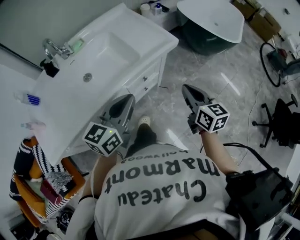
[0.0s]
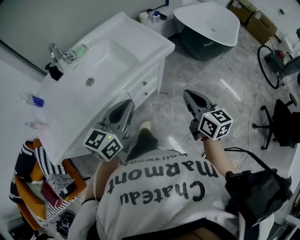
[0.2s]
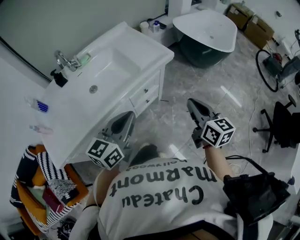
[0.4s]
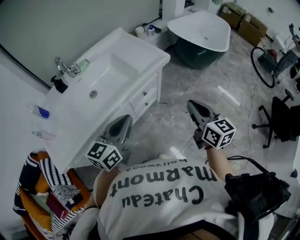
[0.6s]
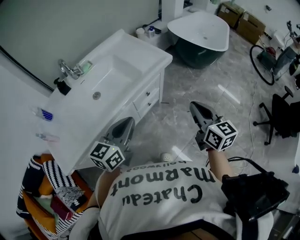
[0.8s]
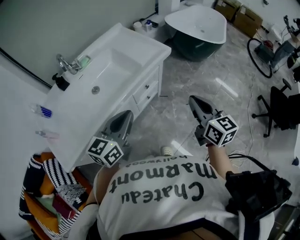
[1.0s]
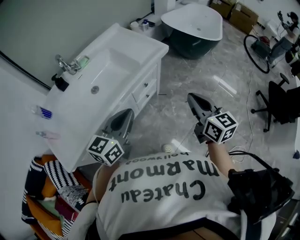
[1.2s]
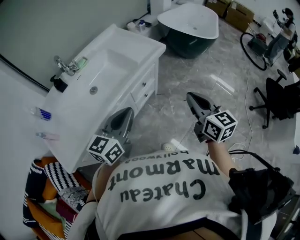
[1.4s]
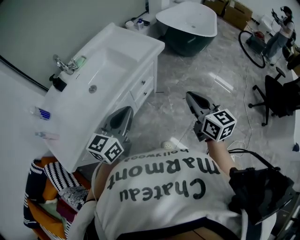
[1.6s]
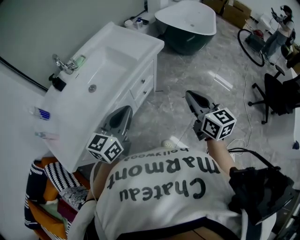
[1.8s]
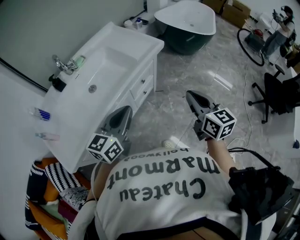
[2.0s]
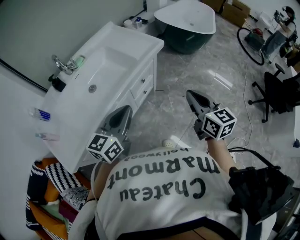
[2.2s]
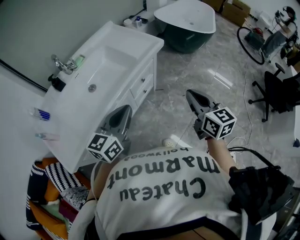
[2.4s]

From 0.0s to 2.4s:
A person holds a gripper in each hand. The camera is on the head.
From 0.0s to 1.2s: The left gripper is displaced backward by some 10 cm. The right gripper moves backward and upward, about 15 cm.
From 1.2s to 2.4s: The grippers make only small movements.

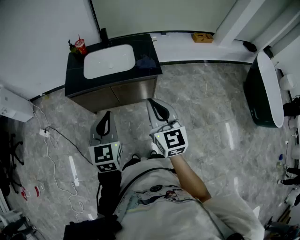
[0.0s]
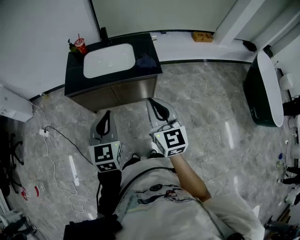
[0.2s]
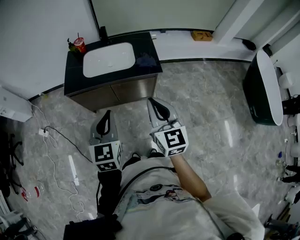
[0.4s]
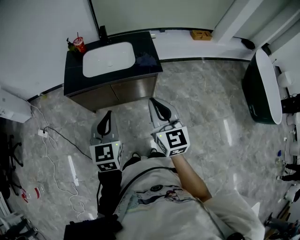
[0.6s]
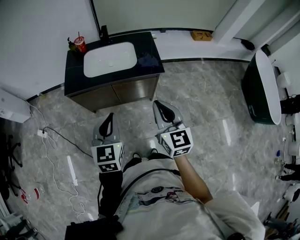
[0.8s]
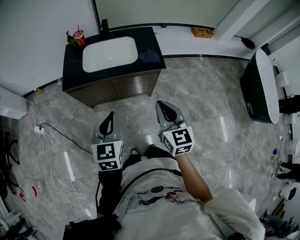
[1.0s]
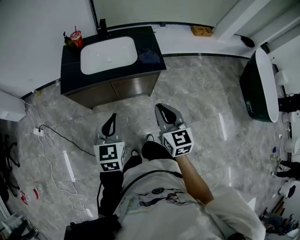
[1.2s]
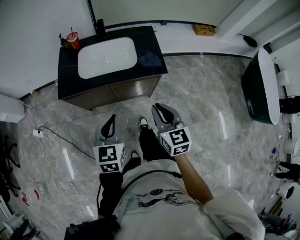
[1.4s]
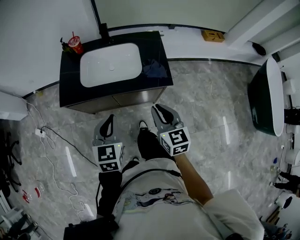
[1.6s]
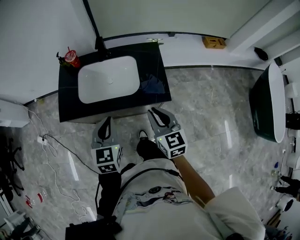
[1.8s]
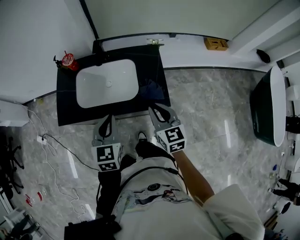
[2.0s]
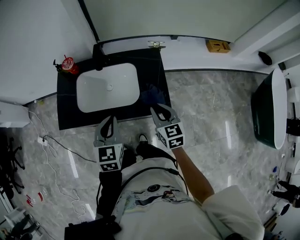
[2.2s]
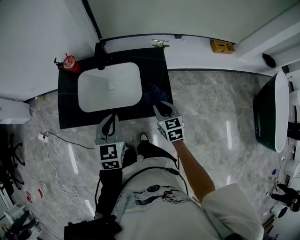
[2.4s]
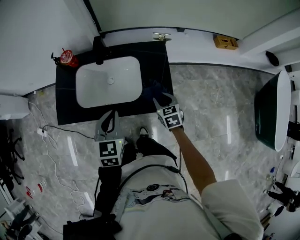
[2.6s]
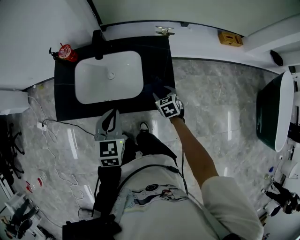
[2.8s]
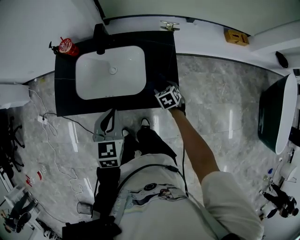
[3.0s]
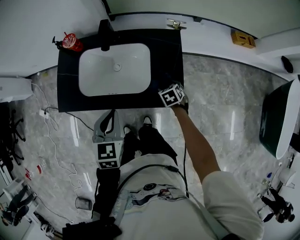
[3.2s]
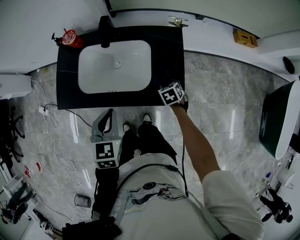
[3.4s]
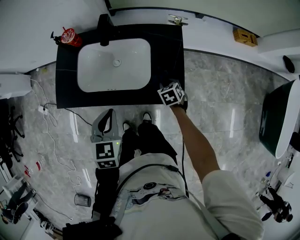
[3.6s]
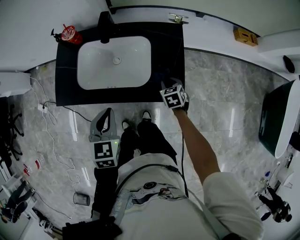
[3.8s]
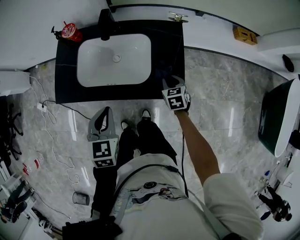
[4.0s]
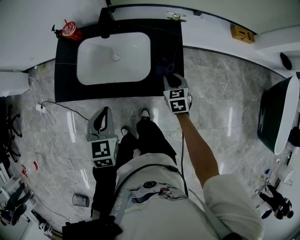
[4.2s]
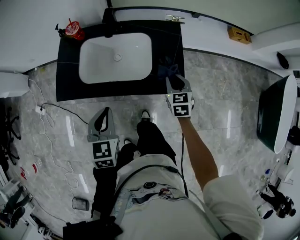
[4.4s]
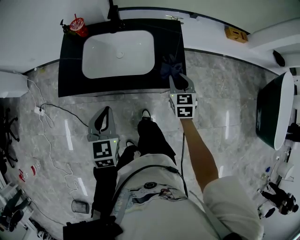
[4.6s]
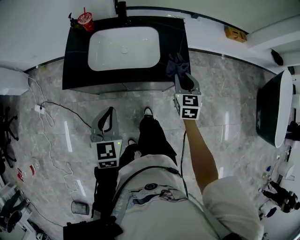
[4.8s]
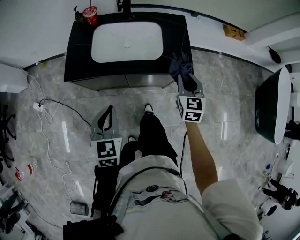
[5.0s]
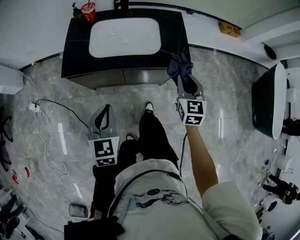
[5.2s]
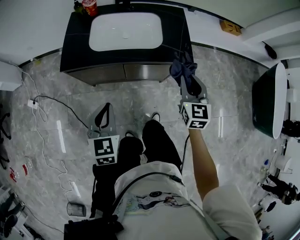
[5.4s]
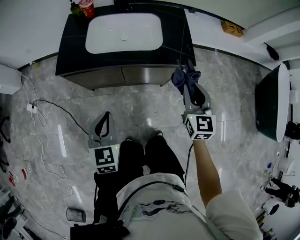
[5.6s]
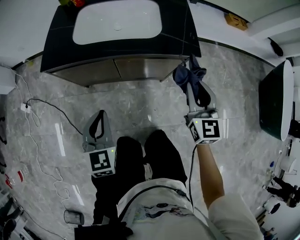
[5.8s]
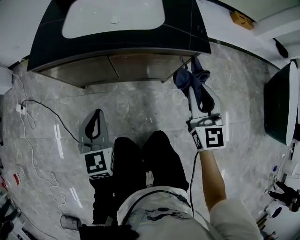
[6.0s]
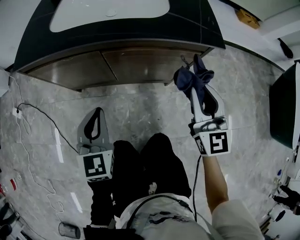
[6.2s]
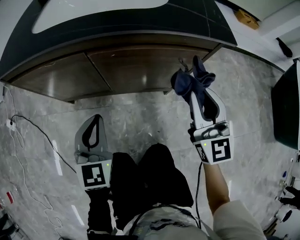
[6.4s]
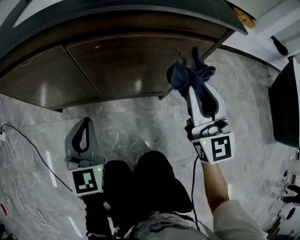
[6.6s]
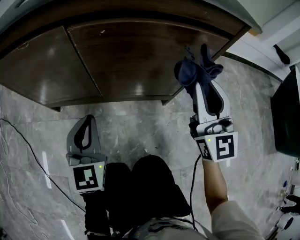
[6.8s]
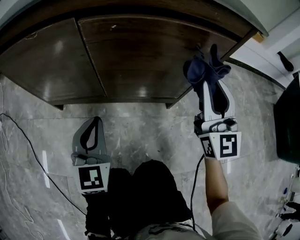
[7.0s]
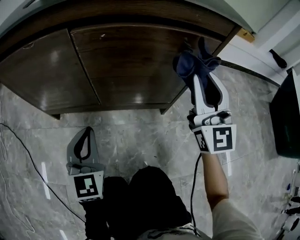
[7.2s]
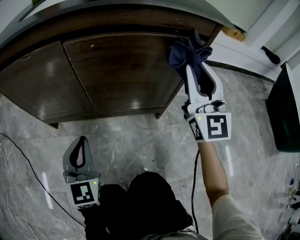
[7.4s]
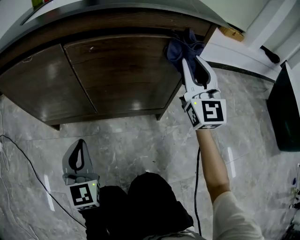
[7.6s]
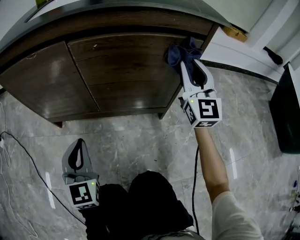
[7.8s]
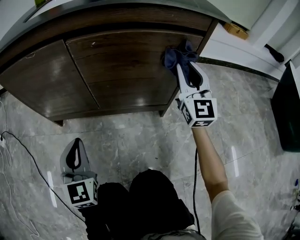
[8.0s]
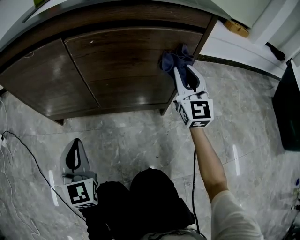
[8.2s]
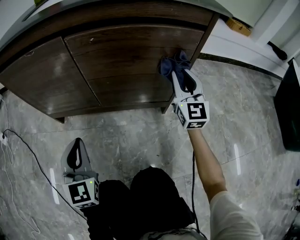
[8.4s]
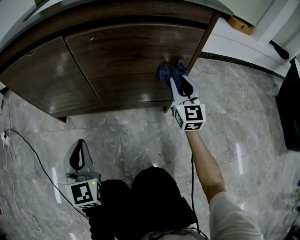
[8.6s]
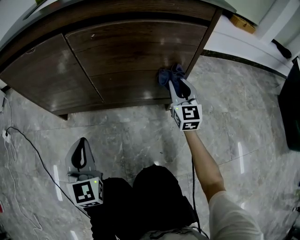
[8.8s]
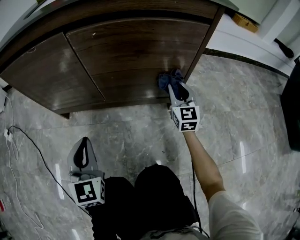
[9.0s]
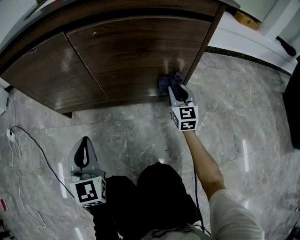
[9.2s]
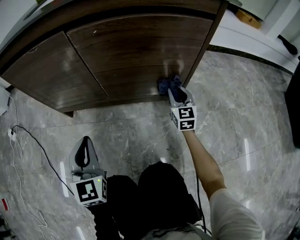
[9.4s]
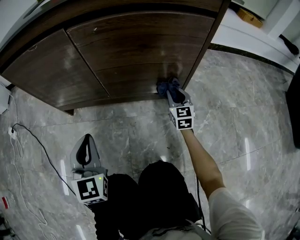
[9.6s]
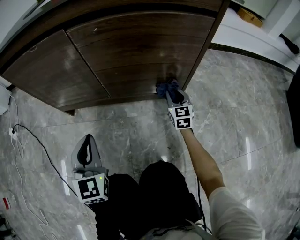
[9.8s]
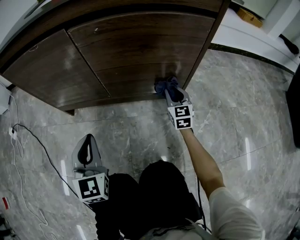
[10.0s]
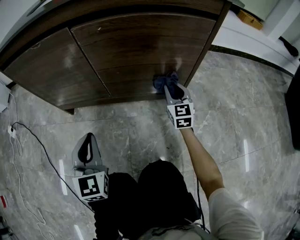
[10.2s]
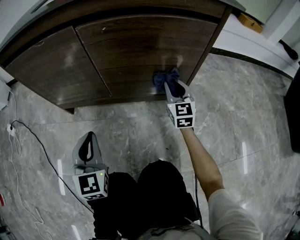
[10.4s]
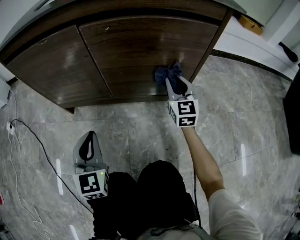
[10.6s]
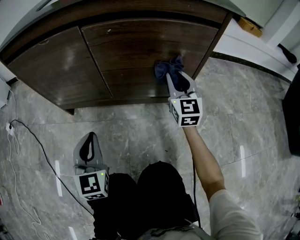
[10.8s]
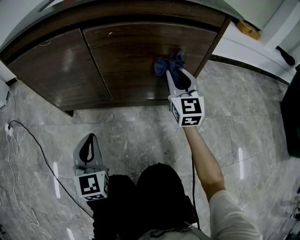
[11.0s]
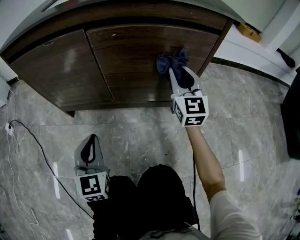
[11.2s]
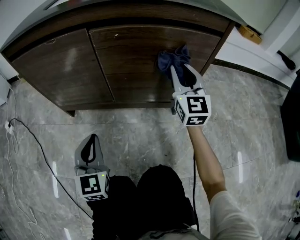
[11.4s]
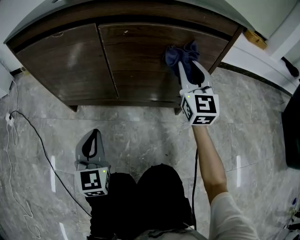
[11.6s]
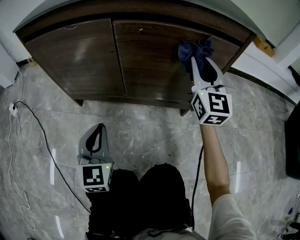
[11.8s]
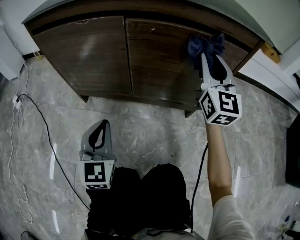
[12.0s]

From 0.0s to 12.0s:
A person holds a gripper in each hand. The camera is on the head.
From 0.0s to 1.6s: The grippers both shift forward and downward by about 20 cm.
From 1.6s to 3.0s: The left gripper heads forward, covering about 15 cm. Meanwhile the right gripper goes approximately 35 cm downward and forward, angles its fingers downward, by some 40 degrees, and opens.
From 3.0s to 4.4s: The right gripper shifts roughly 10 cm upward, swivels some 30 degrees, and closes, while the left gripper heads to the left and backward, covering approximately 10 cm.
From 4.4s to 6.0s: The left gripper shifts some 25 cm downward and backward; the right gripper goes approximately 20 cm backward, and rotates roughly 30 degrees.
From 6.0s to 7.6s: The right gripper heads downward and forward, covering about 20 cm, and swivels approximately 30 degrees. The left gripper moves downward, roughly 25 cm.
From 7.6s to 9.0s: The right gripper is displaced downward by approximately 25 cm, and changes its angle by some 20 degrees.
From 9.0s to 10.4s: The right gripper moves about 10 cm downward and comes back.
From 10.4s to 12.0s: The right gripper shifts roughly 25 cm upward.

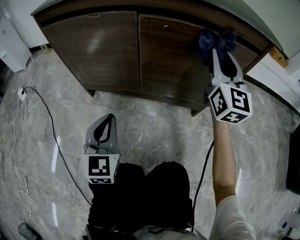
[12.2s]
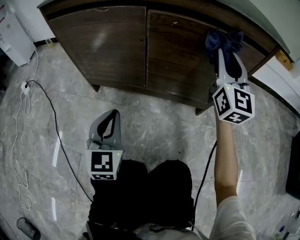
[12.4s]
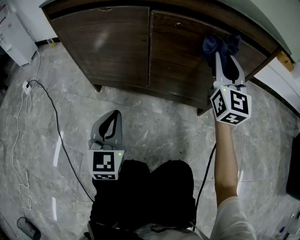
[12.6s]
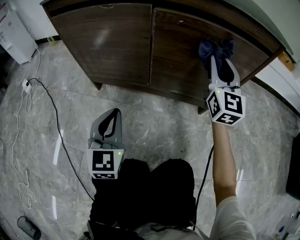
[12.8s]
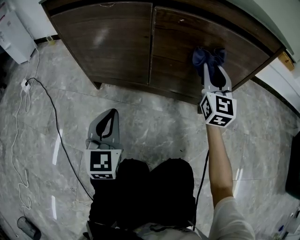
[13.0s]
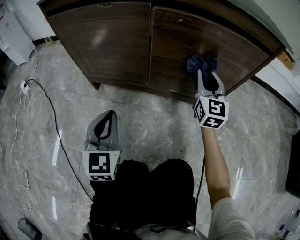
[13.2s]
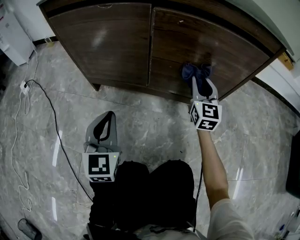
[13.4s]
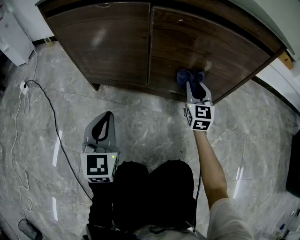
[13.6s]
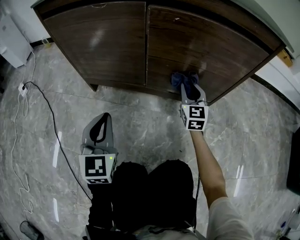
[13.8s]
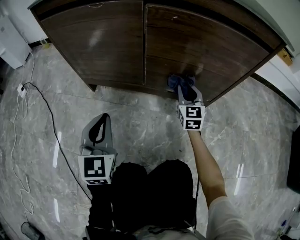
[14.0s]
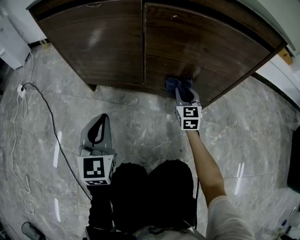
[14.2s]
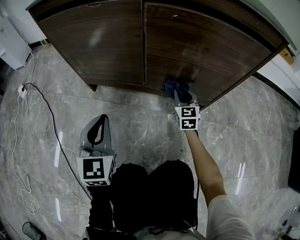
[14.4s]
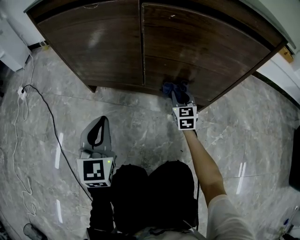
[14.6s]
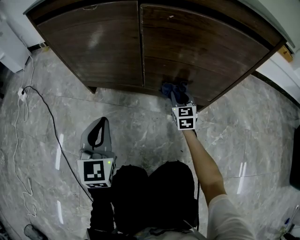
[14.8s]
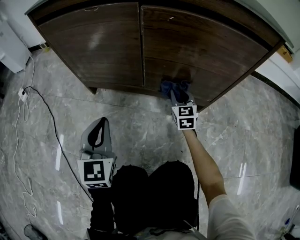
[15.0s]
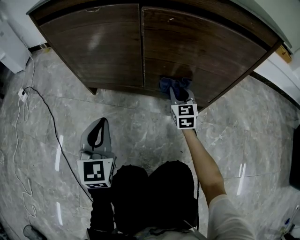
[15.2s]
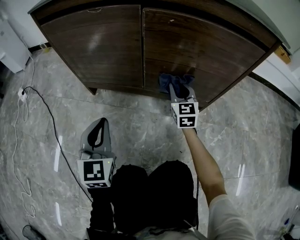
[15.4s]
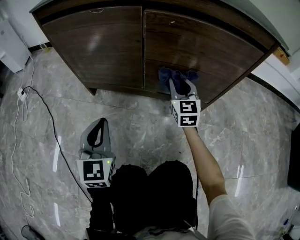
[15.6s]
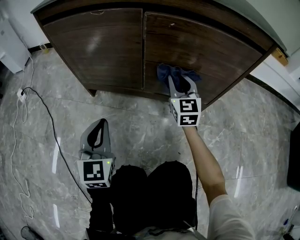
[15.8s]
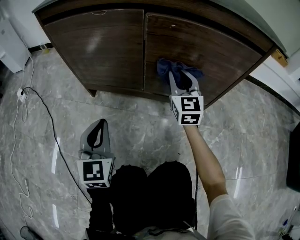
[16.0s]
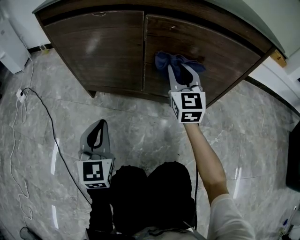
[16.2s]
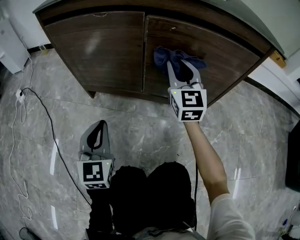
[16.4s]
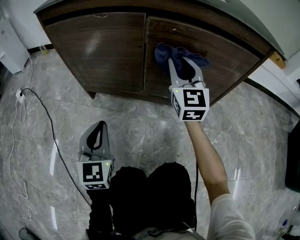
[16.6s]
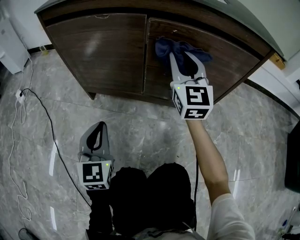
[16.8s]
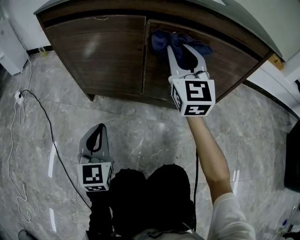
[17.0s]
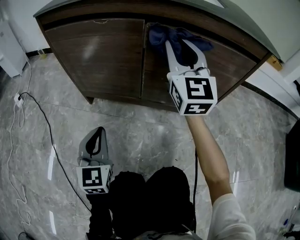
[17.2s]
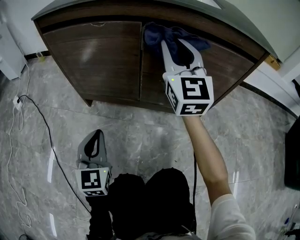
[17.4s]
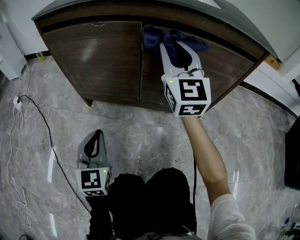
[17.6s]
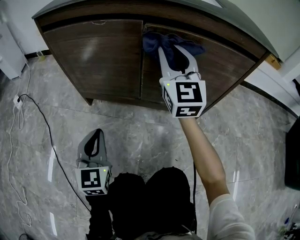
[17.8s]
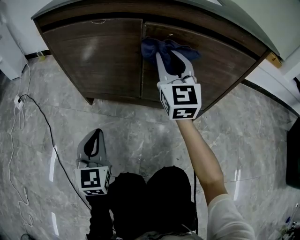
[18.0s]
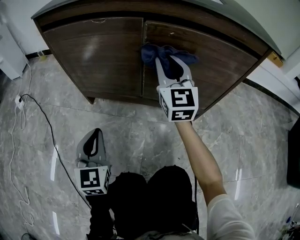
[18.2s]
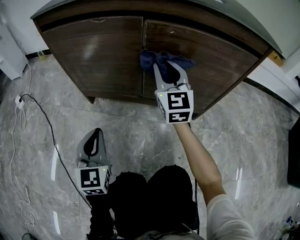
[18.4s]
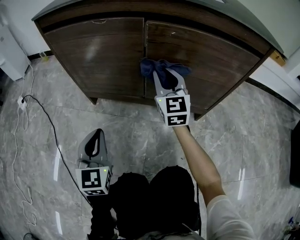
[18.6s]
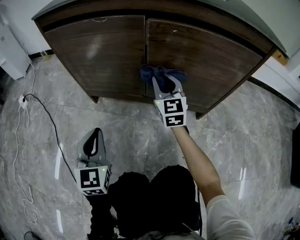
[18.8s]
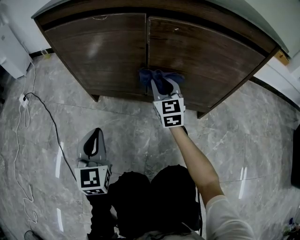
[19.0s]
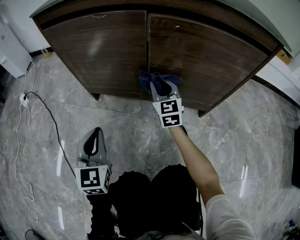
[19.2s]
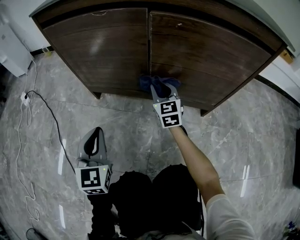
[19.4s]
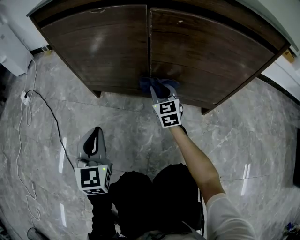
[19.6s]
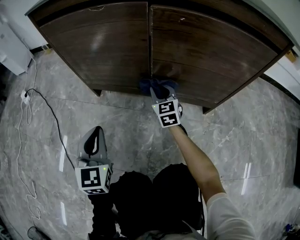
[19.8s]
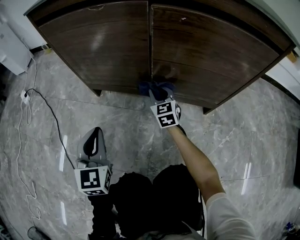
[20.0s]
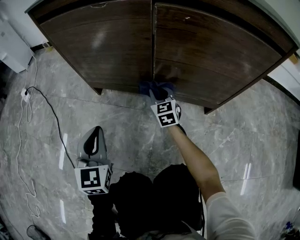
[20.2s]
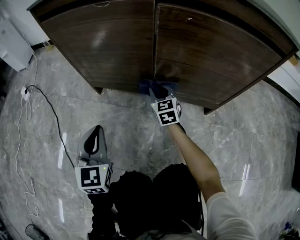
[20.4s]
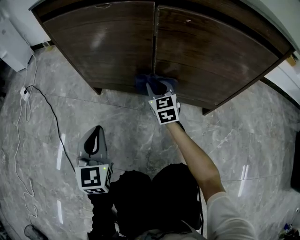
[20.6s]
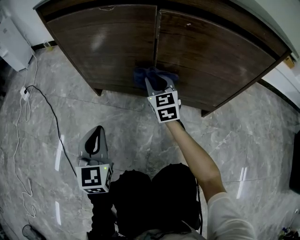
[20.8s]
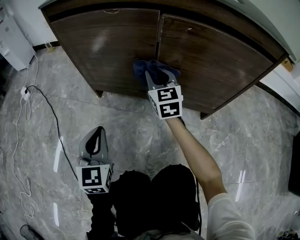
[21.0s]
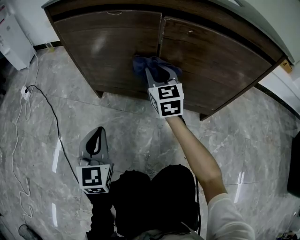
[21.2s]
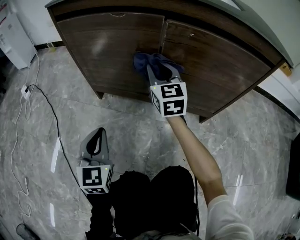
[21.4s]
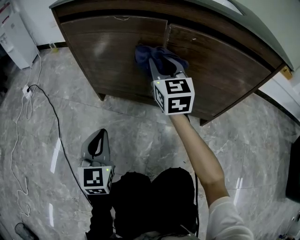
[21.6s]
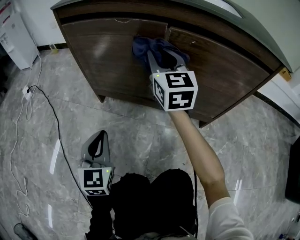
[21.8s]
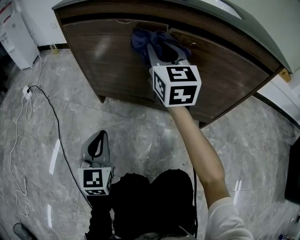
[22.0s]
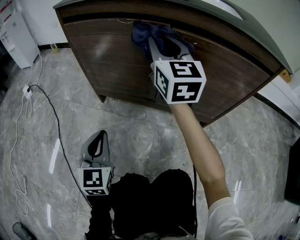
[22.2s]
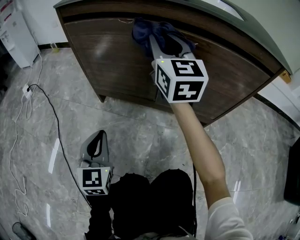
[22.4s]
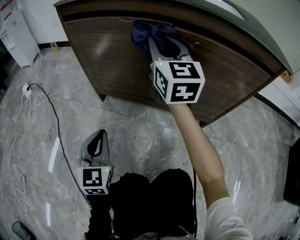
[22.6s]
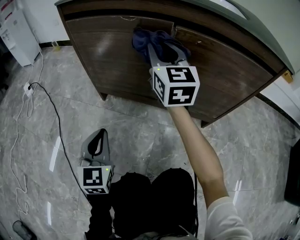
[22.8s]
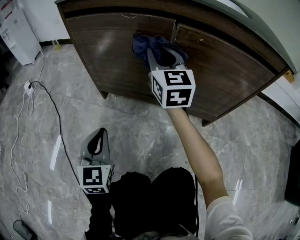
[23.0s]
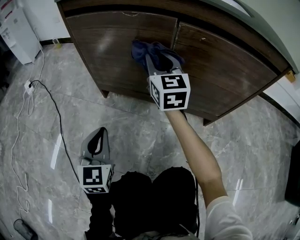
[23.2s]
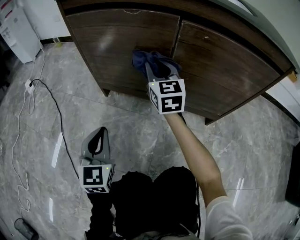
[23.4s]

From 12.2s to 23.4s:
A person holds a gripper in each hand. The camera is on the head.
From 12.2s to 13.8s: The right gripper shifts roughly 25 cm downward, and swivels approximately 20 degrees.
From 13.8s to 15.4s: The right gripper reaches roughly 10 cm downward, then returns.
From 15.4s to 17.0s: The right gripper moves upward, some 25 cm, and swivels about 20 degrees.
From 17.0s to 18.6s: The right gripper heads downward, covering approximately 15 cm.
From 18.6s to 20.2s: The right gripper moves downward, roughly 20 cm, and rotates about 20 degrees.
From 20.2s to 21.8s: The right gripper is displaced upward by approximately 30 cm, and changes its angle by some 20 degrees.
From 21.8s to 23.4s: The right gripper heads downward, covering roughly 10 cm.
